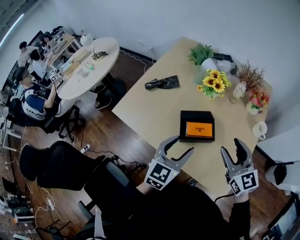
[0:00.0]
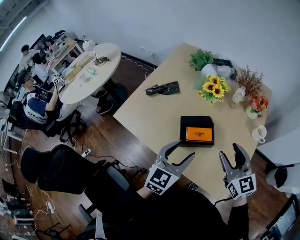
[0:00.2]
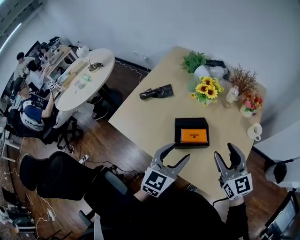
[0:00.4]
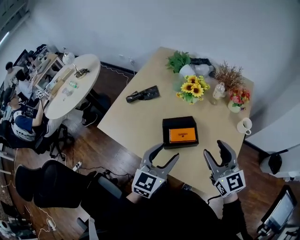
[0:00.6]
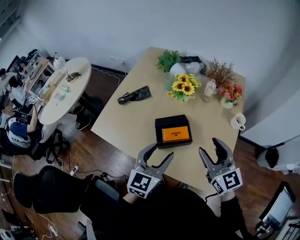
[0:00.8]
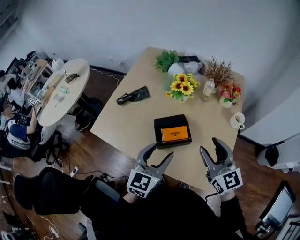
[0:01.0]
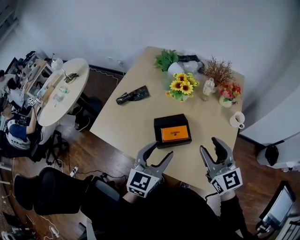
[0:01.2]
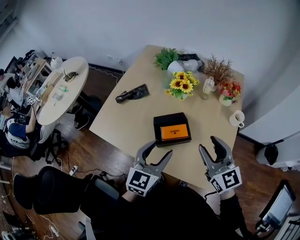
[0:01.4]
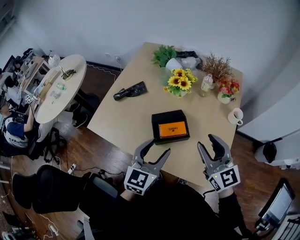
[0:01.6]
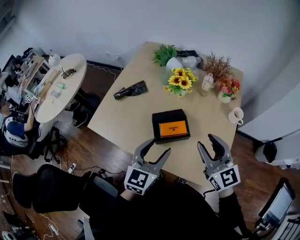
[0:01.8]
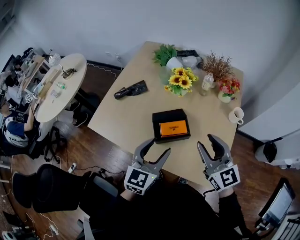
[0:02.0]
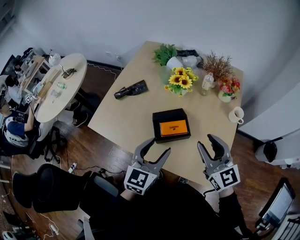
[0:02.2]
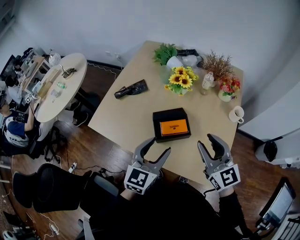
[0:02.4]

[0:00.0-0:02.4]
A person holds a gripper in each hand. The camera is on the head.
0:00.0 to 0:02.4: The grippers stay close to where they were, moving slightly.

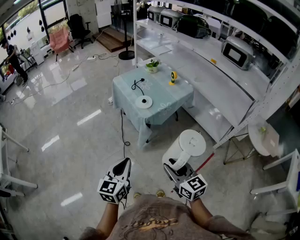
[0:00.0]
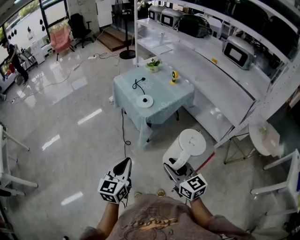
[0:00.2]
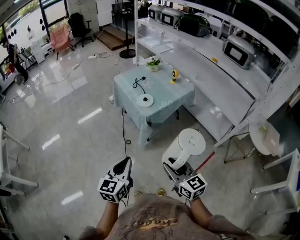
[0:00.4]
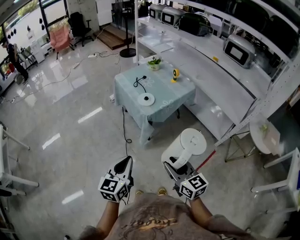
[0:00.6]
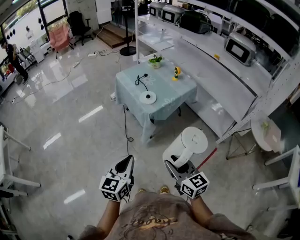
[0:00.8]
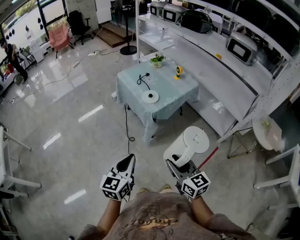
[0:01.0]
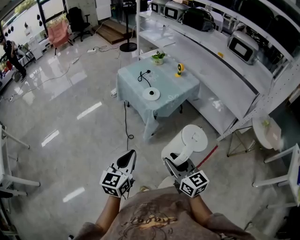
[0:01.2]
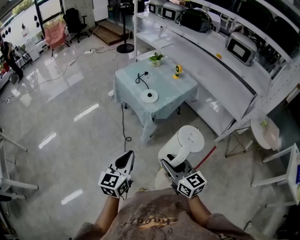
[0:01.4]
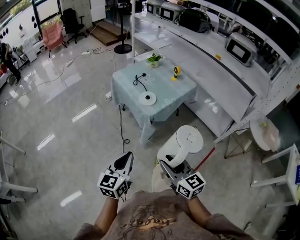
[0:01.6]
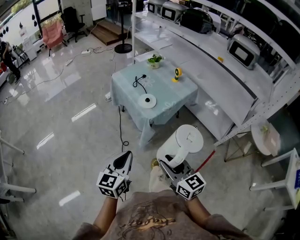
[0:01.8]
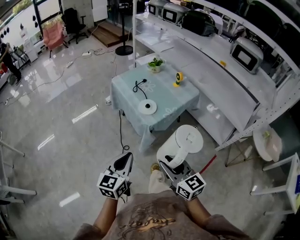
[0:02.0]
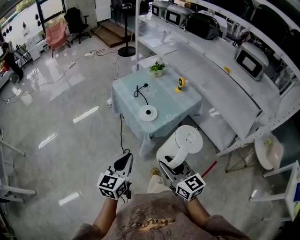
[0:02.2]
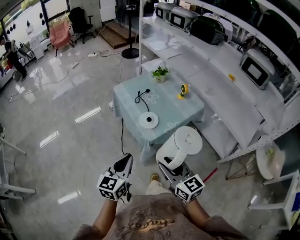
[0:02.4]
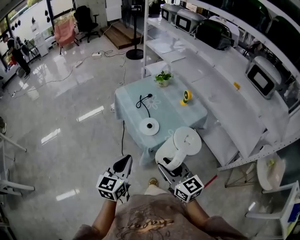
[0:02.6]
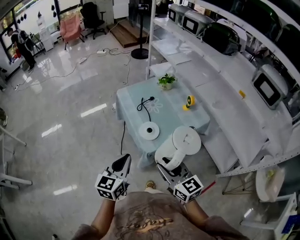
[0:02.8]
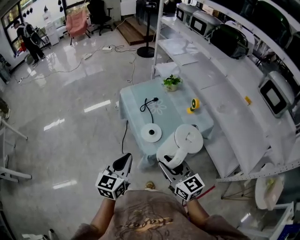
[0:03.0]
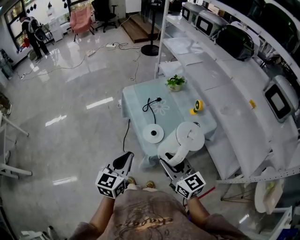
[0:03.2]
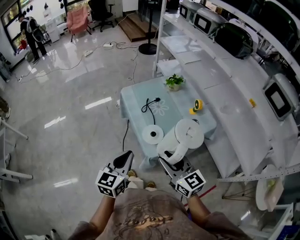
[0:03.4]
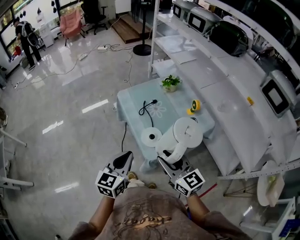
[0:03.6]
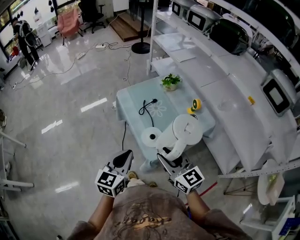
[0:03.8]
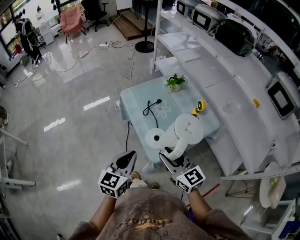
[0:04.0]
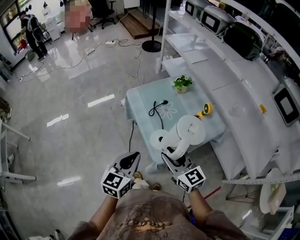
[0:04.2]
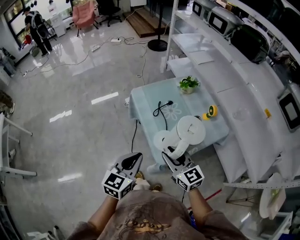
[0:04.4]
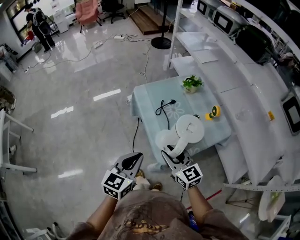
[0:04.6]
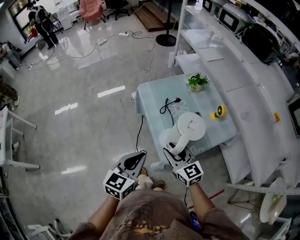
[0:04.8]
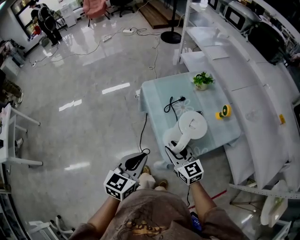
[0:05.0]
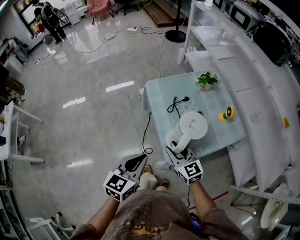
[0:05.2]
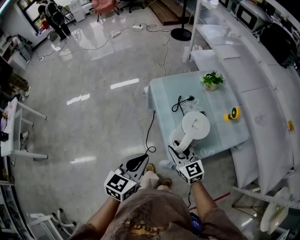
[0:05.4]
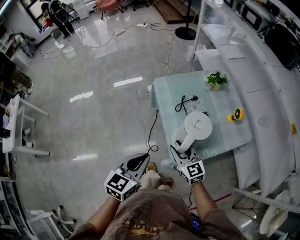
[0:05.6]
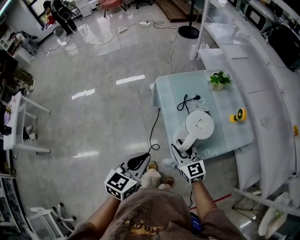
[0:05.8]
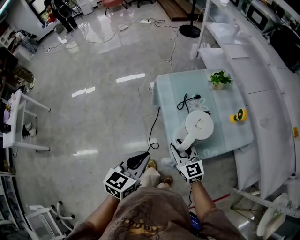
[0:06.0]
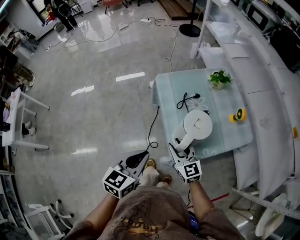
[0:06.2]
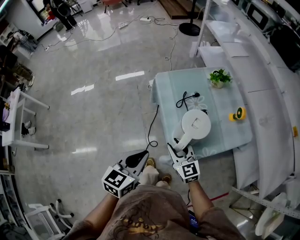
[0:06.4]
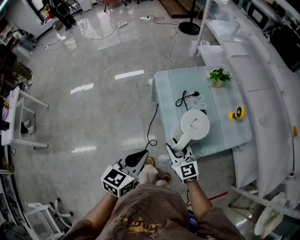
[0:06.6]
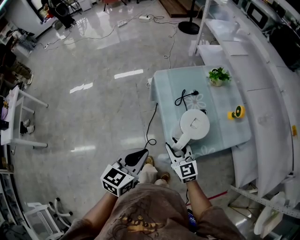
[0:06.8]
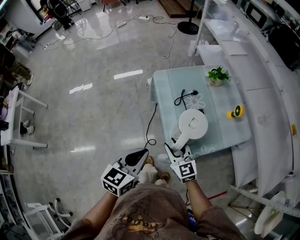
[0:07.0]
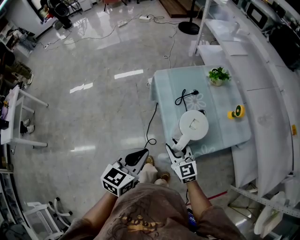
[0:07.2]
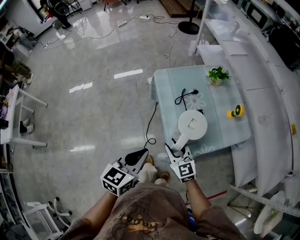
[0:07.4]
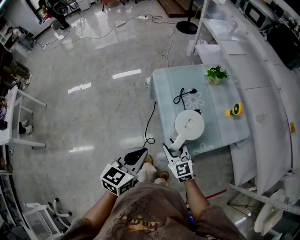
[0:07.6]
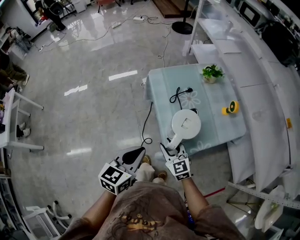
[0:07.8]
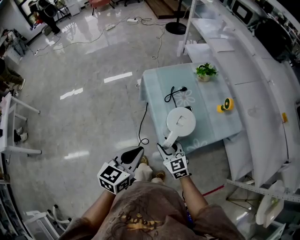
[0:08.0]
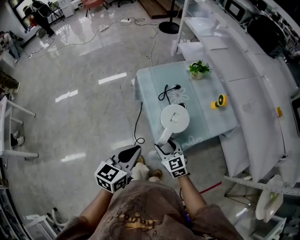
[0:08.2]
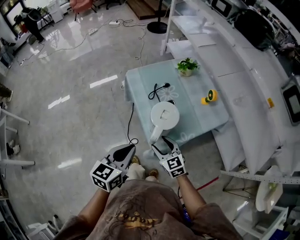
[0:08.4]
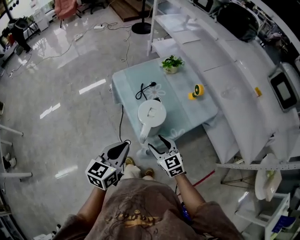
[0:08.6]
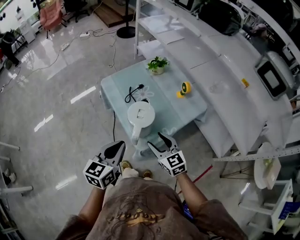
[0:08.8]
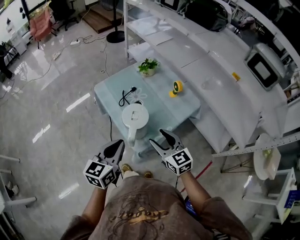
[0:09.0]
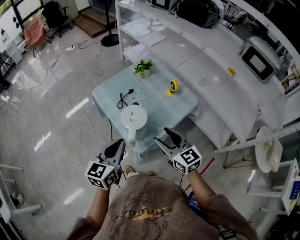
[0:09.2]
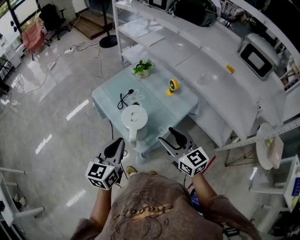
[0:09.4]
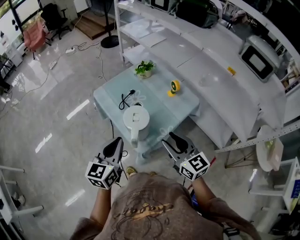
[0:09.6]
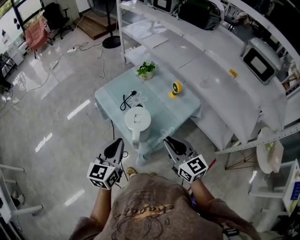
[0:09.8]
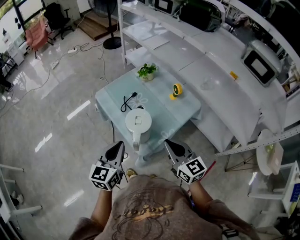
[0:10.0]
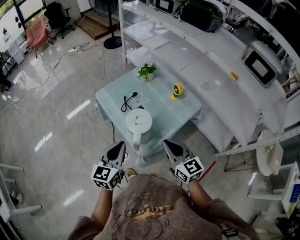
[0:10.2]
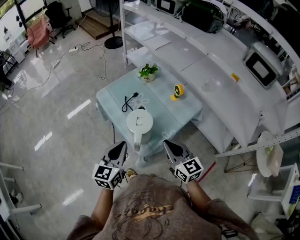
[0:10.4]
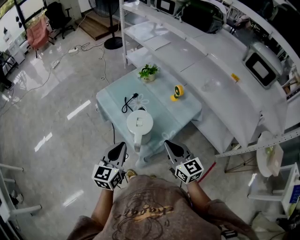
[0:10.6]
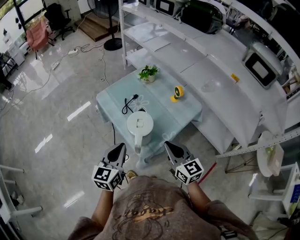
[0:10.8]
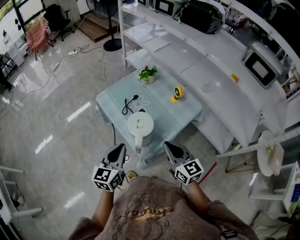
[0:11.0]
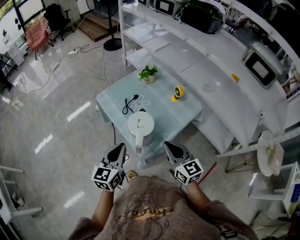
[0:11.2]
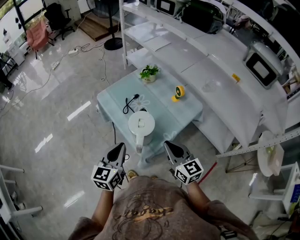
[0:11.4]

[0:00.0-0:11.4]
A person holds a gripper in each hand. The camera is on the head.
0:00.0 to 0:01.4: Both grippers travel together to the left, approximately 5 cm.
0:01.4 to 0:02.8: The grippers both shift forward by approximately 30 cm.
0:02.8 to 0:04.2: The two grippers go approximately 15 cm forward.
0:04.2 to 0:05.6: The right gripper goes roughly 15 cm downward and forward.
0:05.6 to 0:07.2: The grippers make only small movements.
0:07.2 to 0:08.6: The left gripper moves some 5 cm. The right gripper shifts about 10 cm to the right and backward, and opens up.
0:08.6 to 0:10.0: The left gripper moves some 5 cm, while the right gripper heads upward and to the right, covering some 15 cm, changes its angle by some 20 degrees, and closes its fingers.
0:10.0 to 0:11.4: The grippers move only a little.

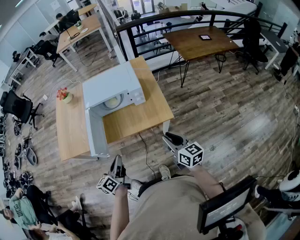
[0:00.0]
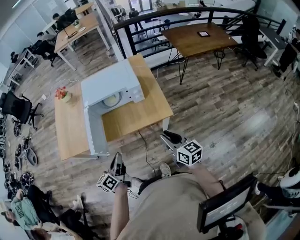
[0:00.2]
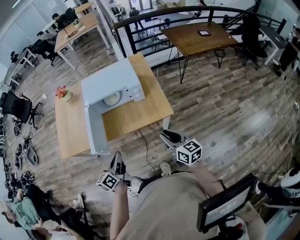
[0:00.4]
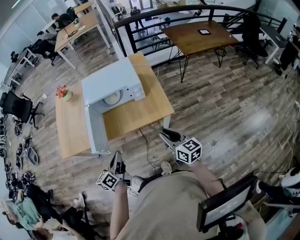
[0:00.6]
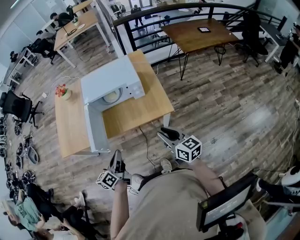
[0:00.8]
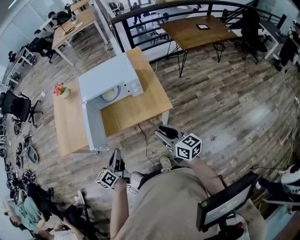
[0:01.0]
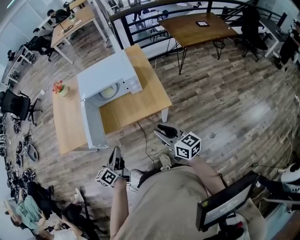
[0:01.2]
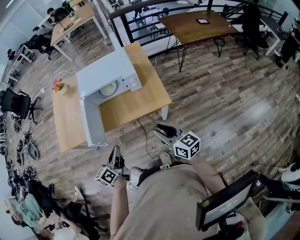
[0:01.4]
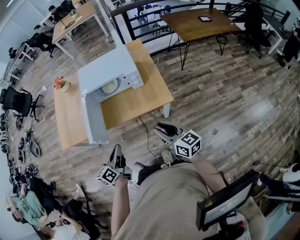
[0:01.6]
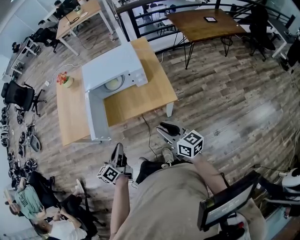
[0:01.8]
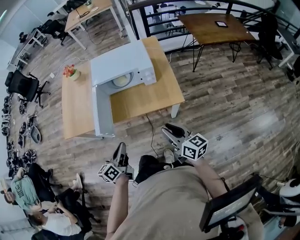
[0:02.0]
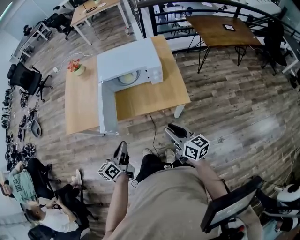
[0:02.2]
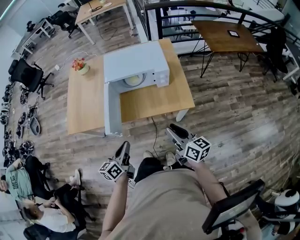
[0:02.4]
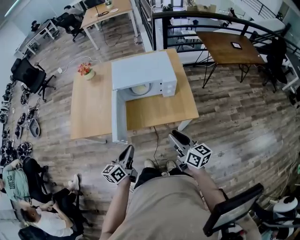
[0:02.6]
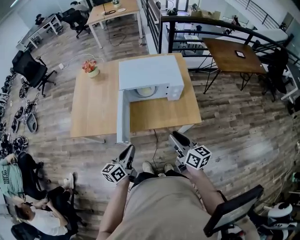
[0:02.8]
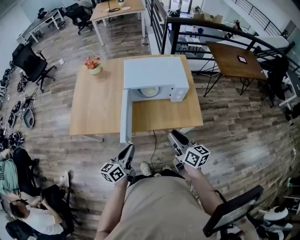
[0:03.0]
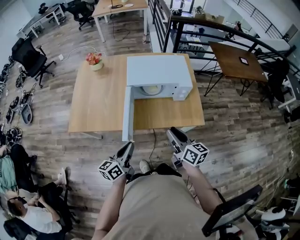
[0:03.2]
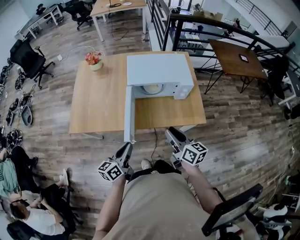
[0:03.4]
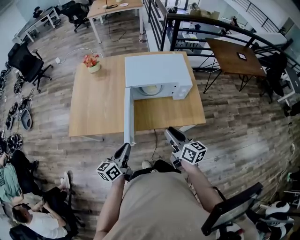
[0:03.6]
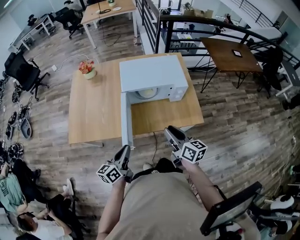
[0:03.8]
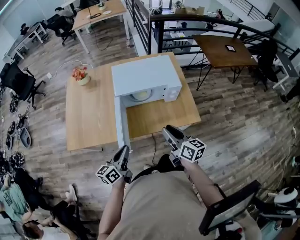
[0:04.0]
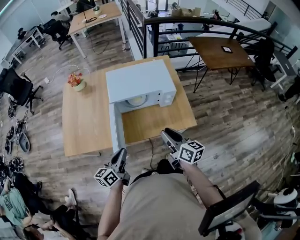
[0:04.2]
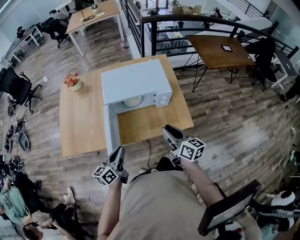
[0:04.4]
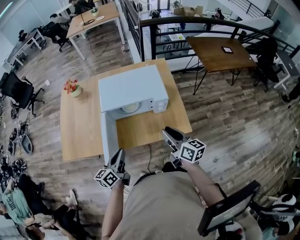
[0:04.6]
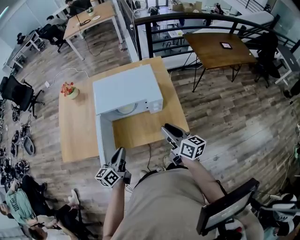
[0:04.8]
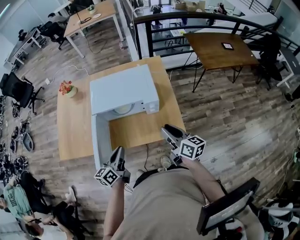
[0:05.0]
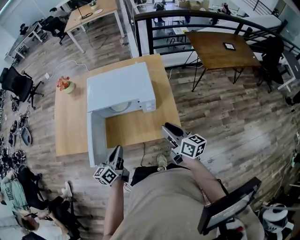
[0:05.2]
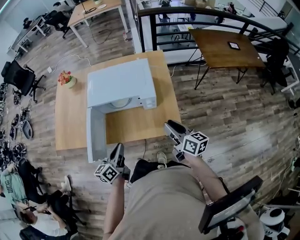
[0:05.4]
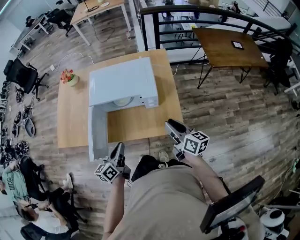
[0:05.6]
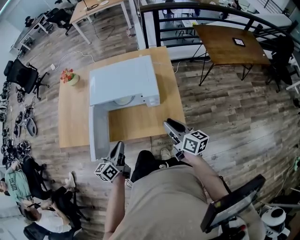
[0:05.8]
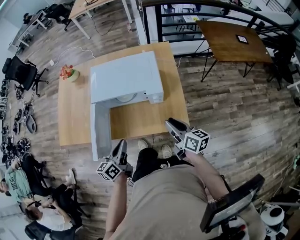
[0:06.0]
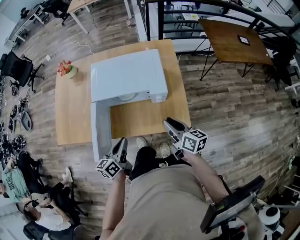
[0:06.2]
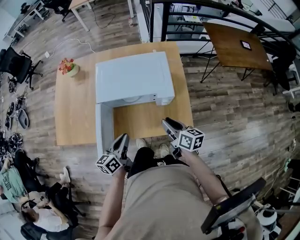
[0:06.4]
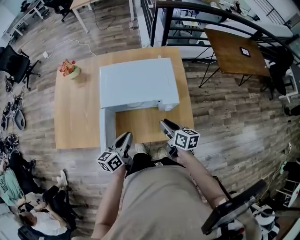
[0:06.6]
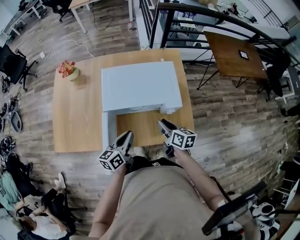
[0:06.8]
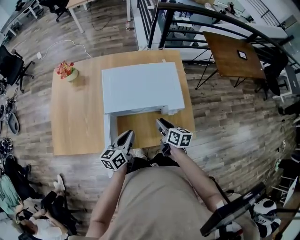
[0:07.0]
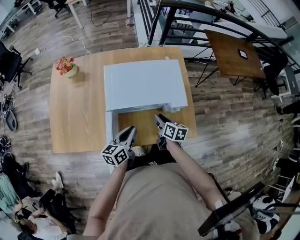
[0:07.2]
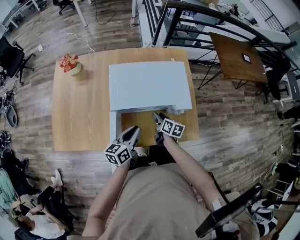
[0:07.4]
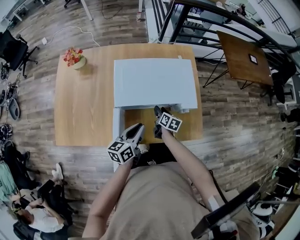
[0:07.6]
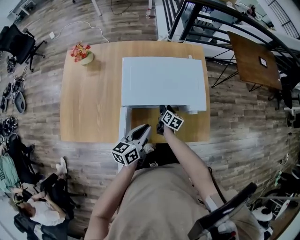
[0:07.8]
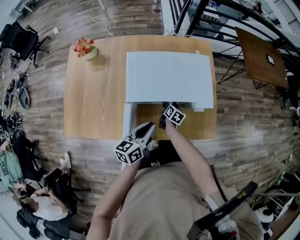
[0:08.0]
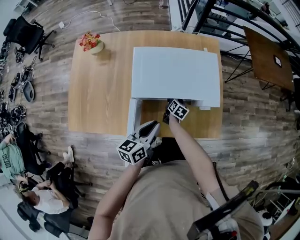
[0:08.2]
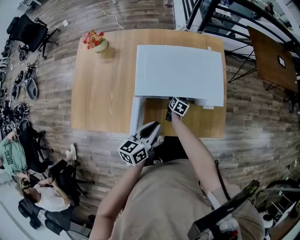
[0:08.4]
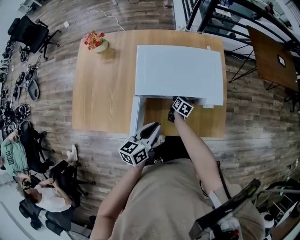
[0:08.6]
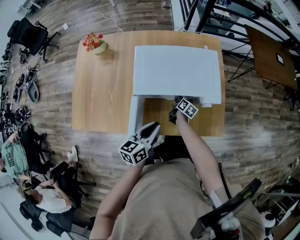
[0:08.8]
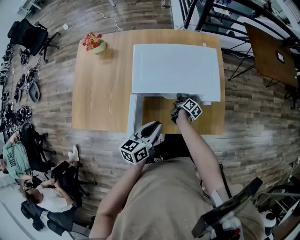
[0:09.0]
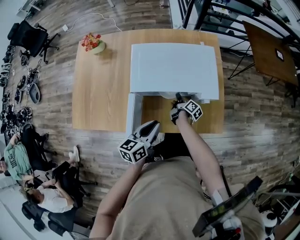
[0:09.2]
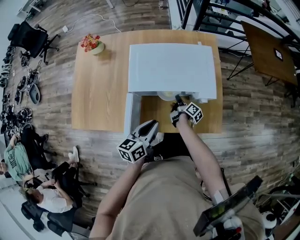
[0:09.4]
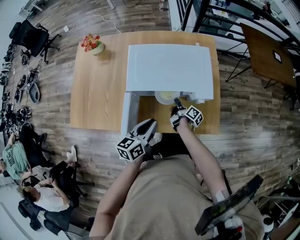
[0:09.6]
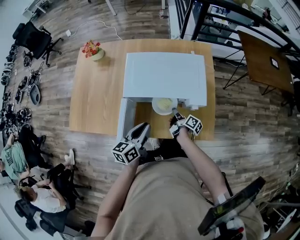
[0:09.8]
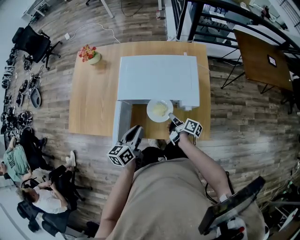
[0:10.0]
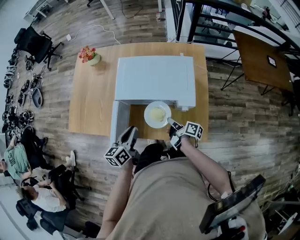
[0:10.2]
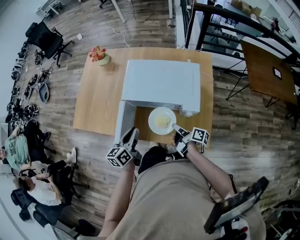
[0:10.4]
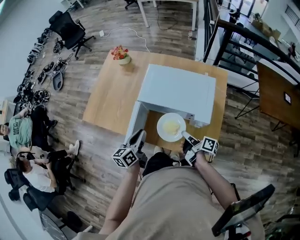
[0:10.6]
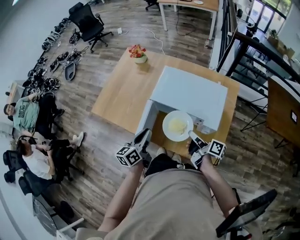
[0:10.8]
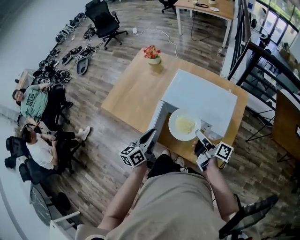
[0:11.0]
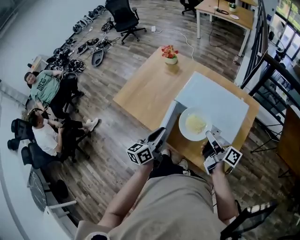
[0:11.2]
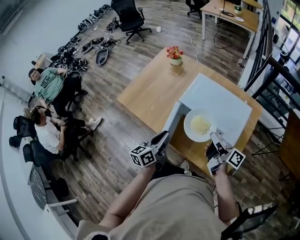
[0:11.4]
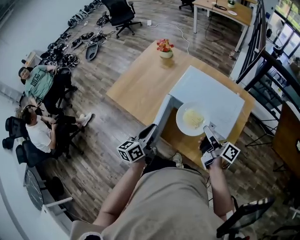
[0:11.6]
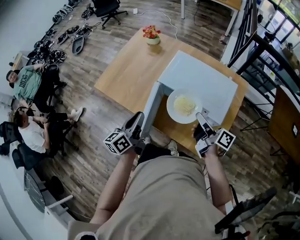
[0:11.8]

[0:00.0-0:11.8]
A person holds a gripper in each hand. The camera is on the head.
0:00.0 to 0:01.4: The grippers move only a little.
0:01.4 to 0:03.0: The right gripper travels to the left and forward by some 20 cm. Meanwhile the left gripper moves to the left, about 15 cm.
0:03.0 to 0:04.4: The left gripper travels forward by some 10 cm; the right gripper heads forward and to the right, covering some 10 cm.
0:04.4 to 0:06.0: The right gripper travels to the right and forward by about 15 cm. The left gripper moves to the right, roughly 15 cm.
0:06.0 to 0:07.4: The right gripper goes some 30 cm to the left, downward and forward, and turns by some 30 degrees. Meanwhile the left gripper heads forward and to the left, covering roughly 20 cm.
0:07.4 to 0:08.8: The right gripper goes roughly 15 cm downward.
0:08.8 to 0:10.4: The right gripper goes about 20 cm upward, and turns by approximately 40 degrees. The left gripper swivels roughly 20 degrees.
0:10.4 to 0:11.8: The left gripper is displaced to the left and upward by roughly 15 cm, and changes its angle by roughly 20 degrees, while the right gripper is displaced upward by some 20 cm, and swivels some 30 degrees.
